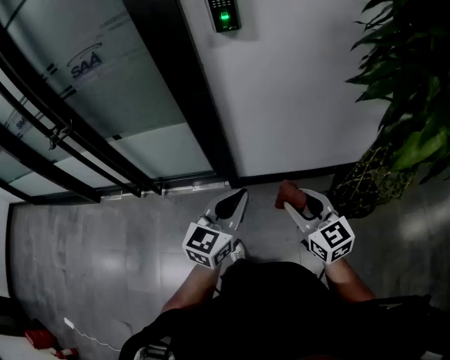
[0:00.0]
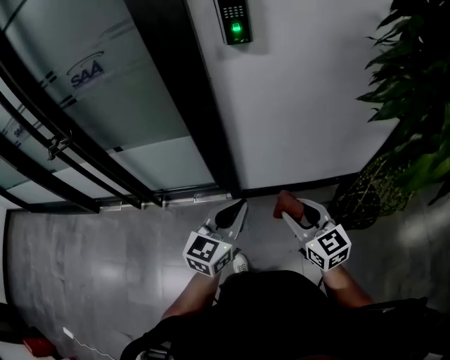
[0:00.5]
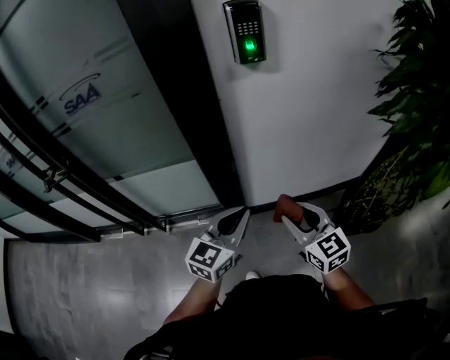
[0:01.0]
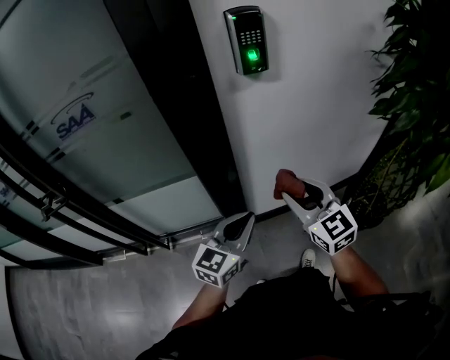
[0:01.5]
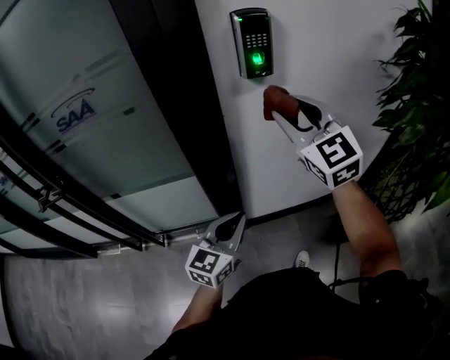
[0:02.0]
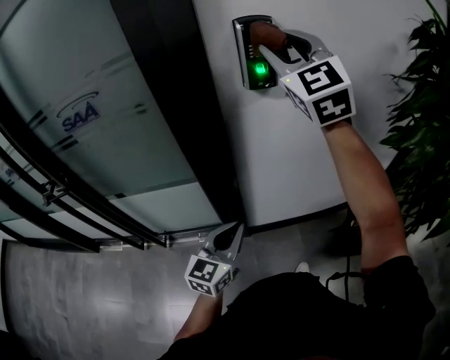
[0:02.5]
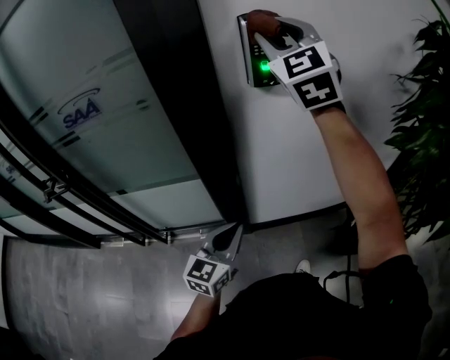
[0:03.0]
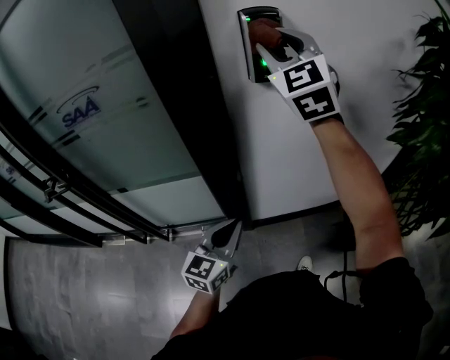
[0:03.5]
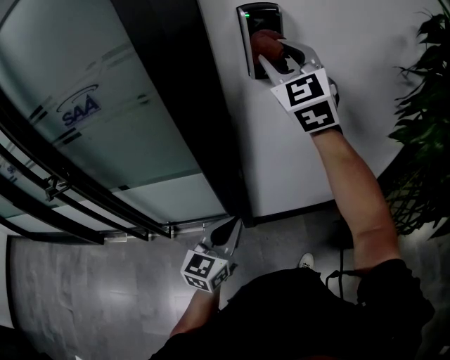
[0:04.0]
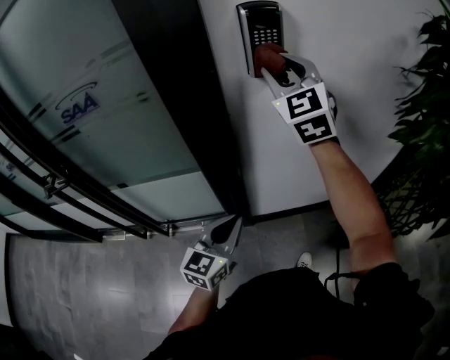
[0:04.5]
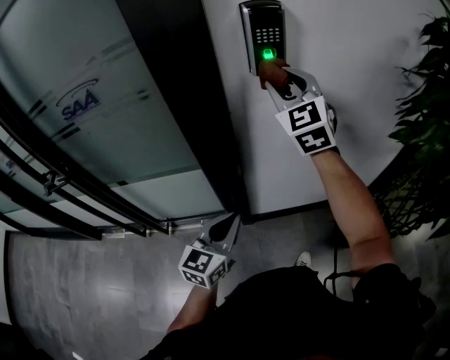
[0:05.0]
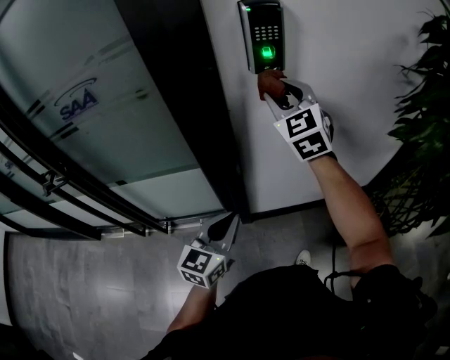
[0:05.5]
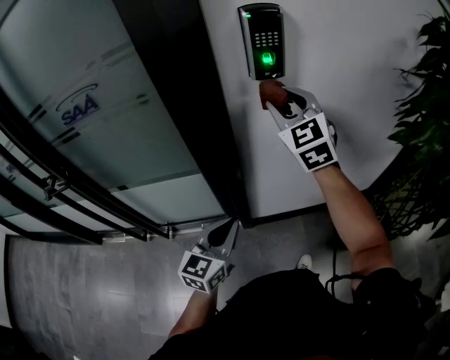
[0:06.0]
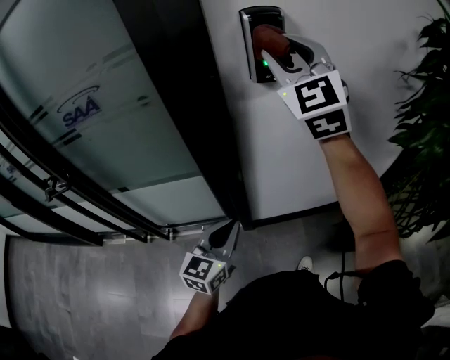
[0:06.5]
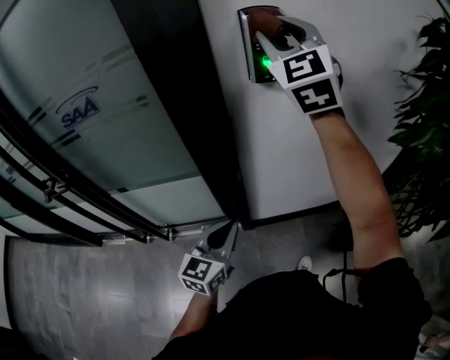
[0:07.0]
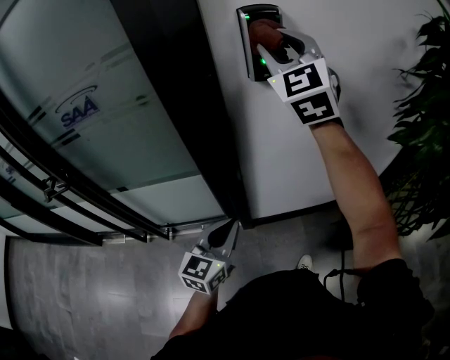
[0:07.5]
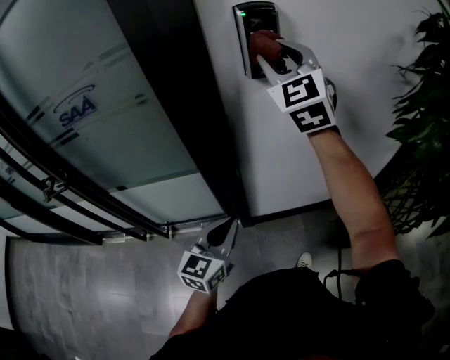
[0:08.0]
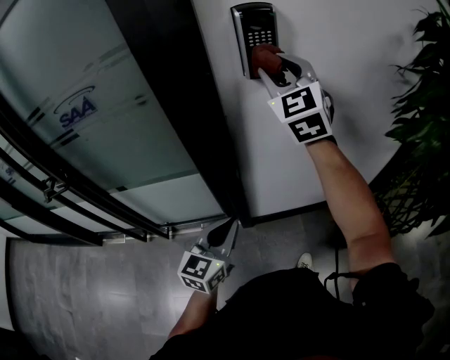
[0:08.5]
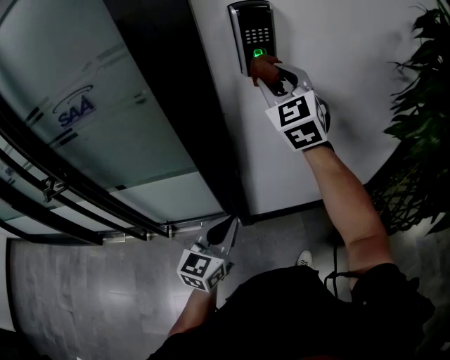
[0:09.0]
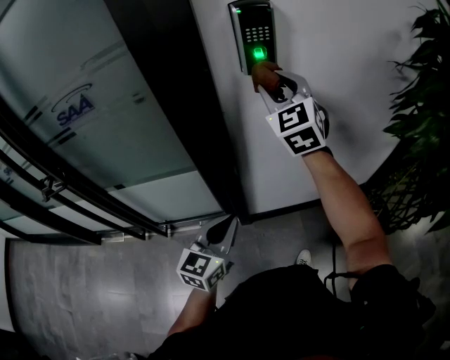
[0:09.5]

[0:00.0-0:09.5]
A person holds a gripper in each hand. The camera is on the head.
0:00.0 to 0:02.0: The right gripper heads forward, upward and to the left, covering roughly 40 cm, and changes its angle by about 30 degrees. The left gripper is displaced to the left and forward by roughly 20 cm.
0:02.0 to 0:04.0: The right gripper shifts some 15 cm forward and upward.
0:04.0 to 0:05.5: The right gripper goes about 10 cm downward.
0:05.5 to 0:07.5: The right gripper moves upward, about 15 cm.
0:07.5 to 0:09.5: The right gripper moves downward, some 10 cm.

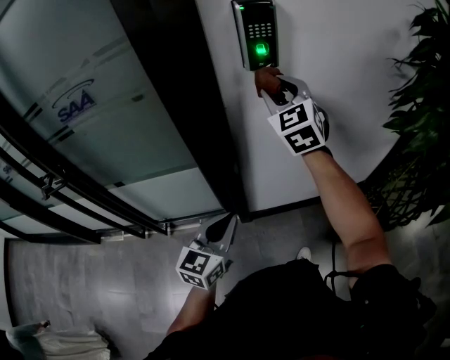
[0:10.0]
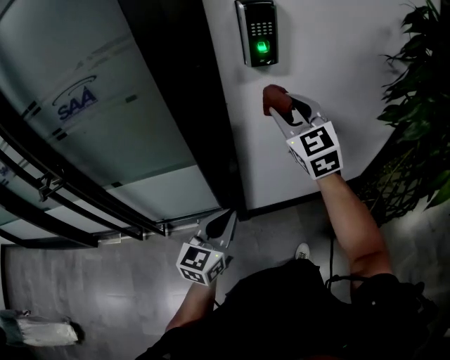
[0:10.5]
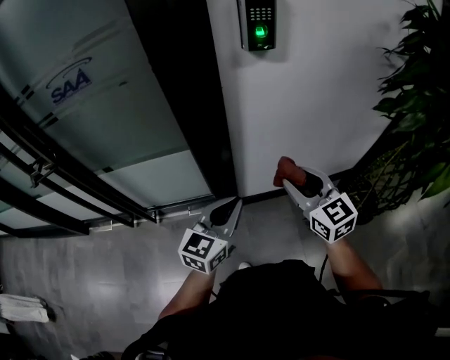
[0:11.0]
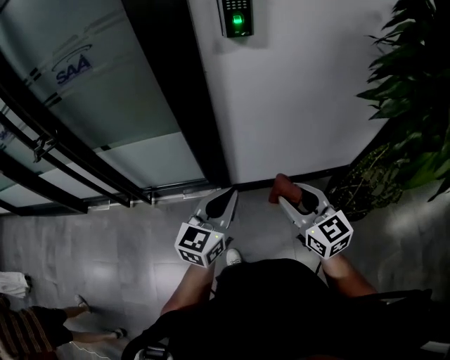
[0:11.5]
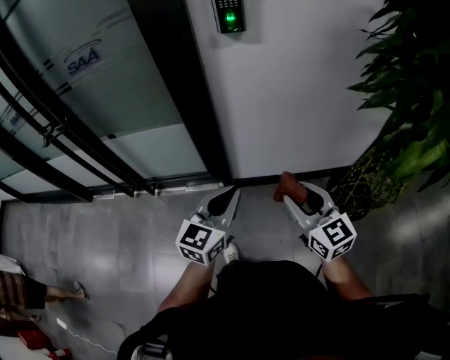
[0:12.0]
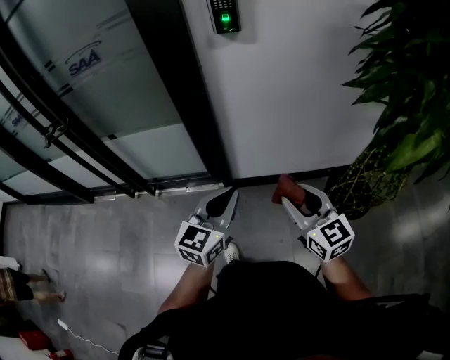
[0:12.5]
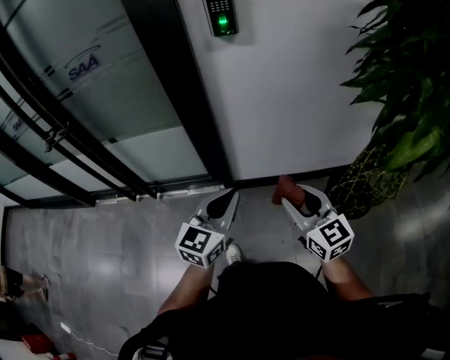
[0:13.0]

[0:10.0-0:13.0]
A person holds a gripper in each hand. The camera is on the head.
0:10.0 to 0:11.5: The left gripper heads to the right and backward, covering some 10 cm. Meanwhile the right gripper goes some 35 cm backward and downward, and swivels approximately 40 degrees.
0:11.5 to 0:13.0: The grippers both shift backward and to the right by approximately 10 cm.

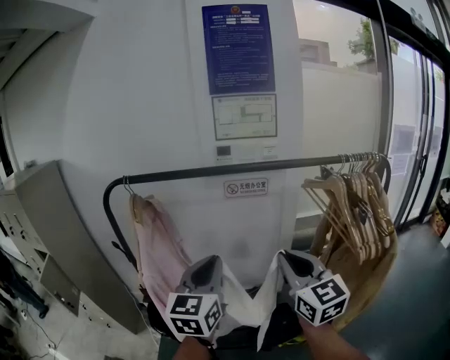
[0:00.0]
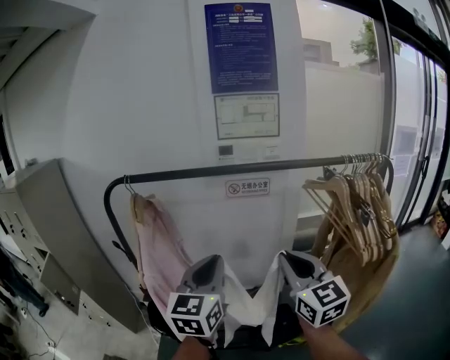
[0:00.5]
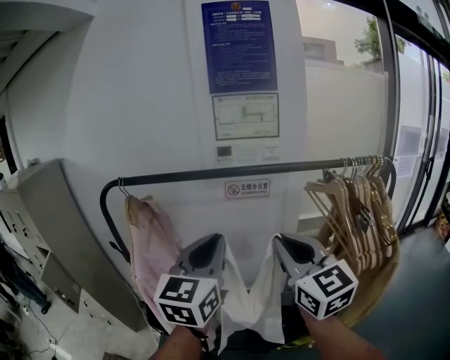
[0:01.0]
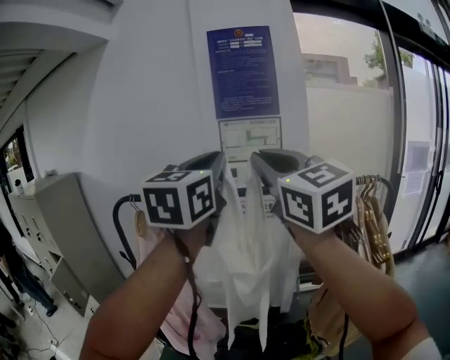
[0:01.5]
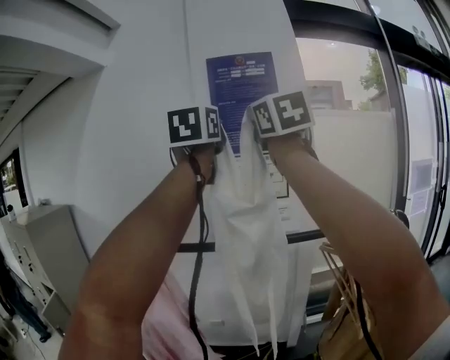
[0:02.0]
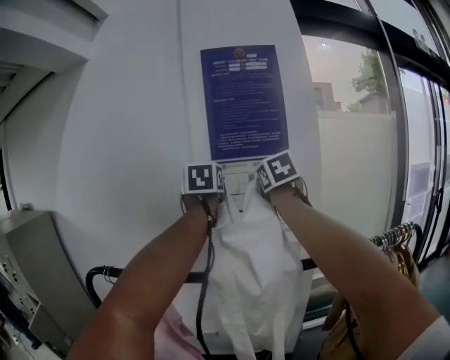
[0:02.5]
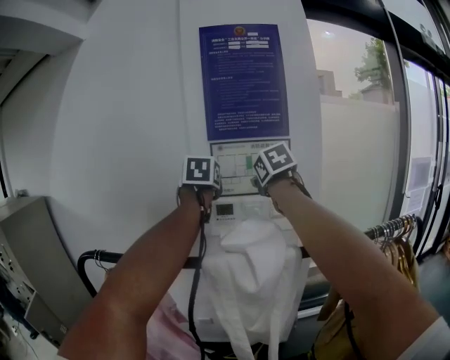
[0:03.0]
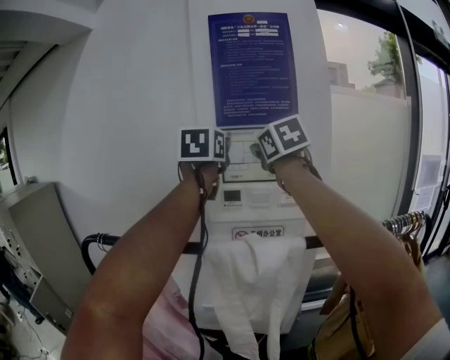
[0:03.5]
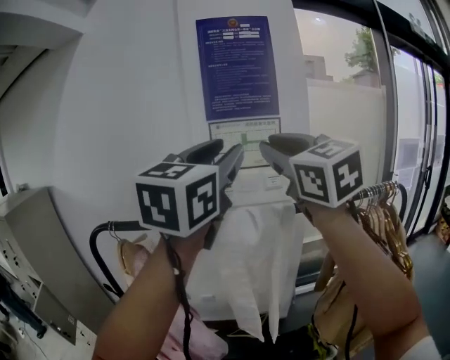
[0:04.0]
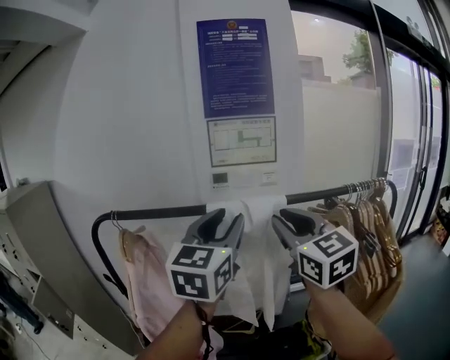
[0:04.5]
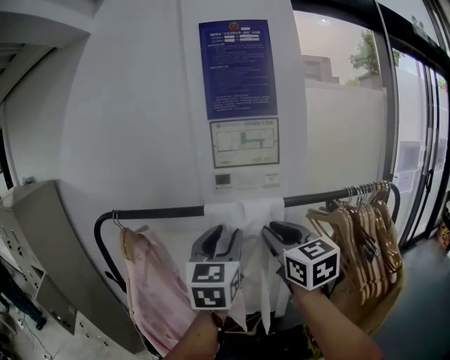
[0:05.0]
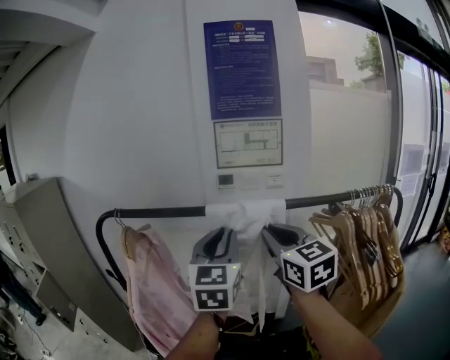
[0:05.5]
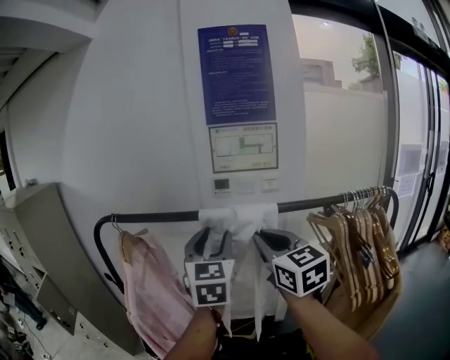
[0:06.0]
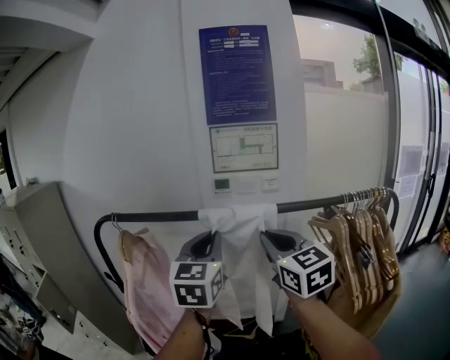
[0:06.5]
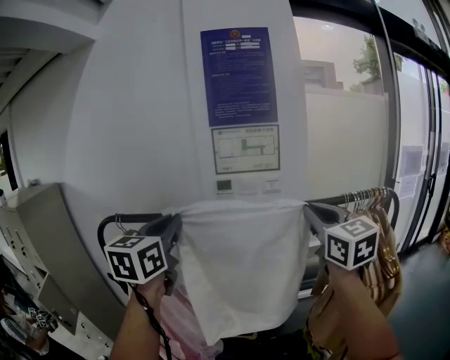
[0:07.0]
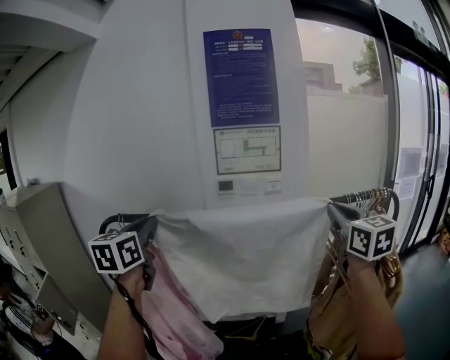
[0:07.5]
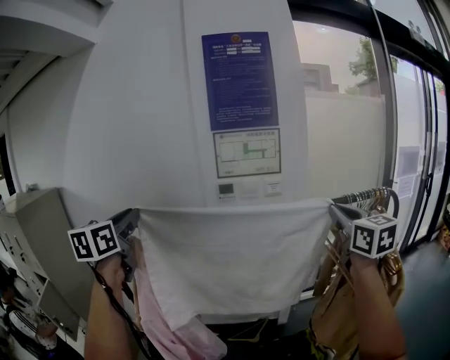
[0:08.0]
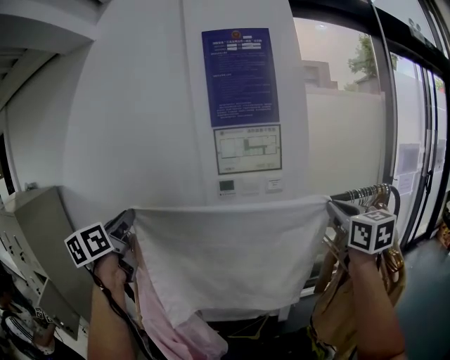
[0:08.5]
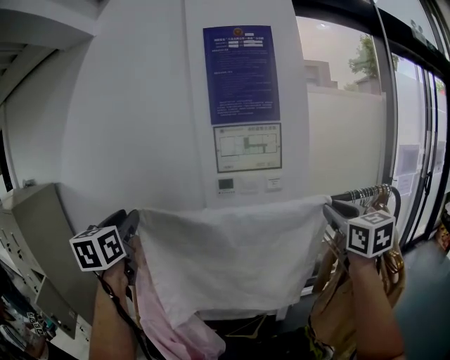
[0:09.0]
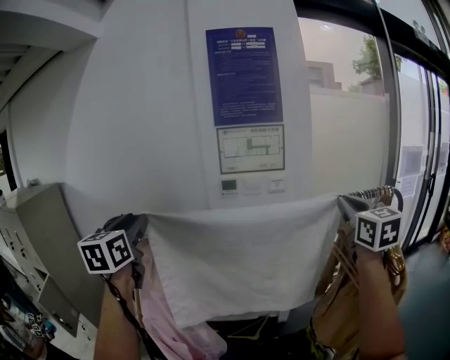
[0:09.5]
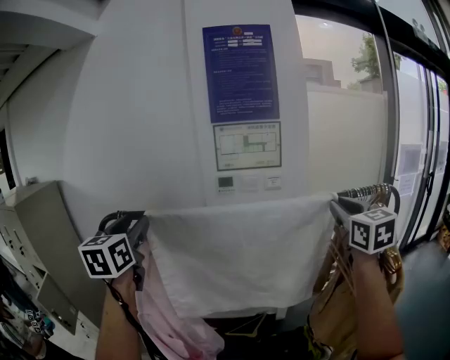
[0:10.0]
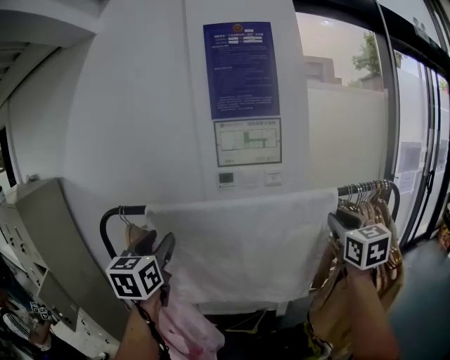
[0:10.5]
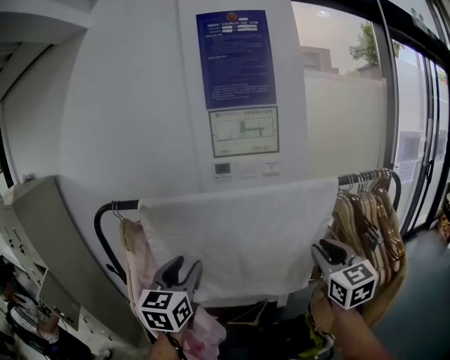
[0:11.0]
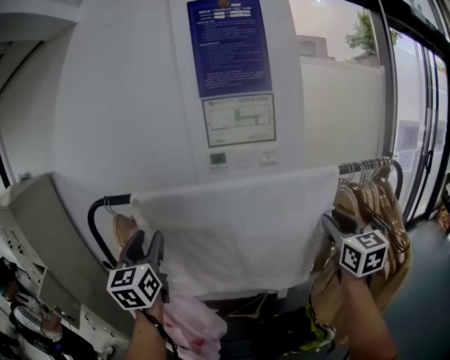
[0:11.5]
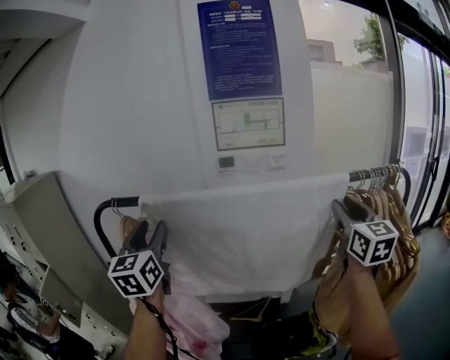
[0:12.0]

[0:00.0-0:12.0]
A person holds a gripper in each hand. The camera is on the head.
0:00.0 to 0:02.0: The two grippers go roughly 50 cm upward and forward. The left gripper rotates about 20 degrees.
0:02.0 to 0:04.0: Both grippers travel together downward, some 15 cm. The right gripper reaches some 25 cm forward, then returns. Meanwhile the left gripper moves approximately 25 cm forward and comes back, changes its angle by approximately 20 degrees, and opens.
0:04.0 to 0:06.0: Both grippers move downward, about 20 cm. The left gripper turns by roughly 30 degrees, and closes, then reopens.
0:06.0 to 0:08.0: The right gripper is displaced to the right by some 20 cm. The left gripper goes some 25 cm to the left, and closes.
0:08.0 to 0:10.0: The left gripper opens.
0:10.0 to 0:12.0: Both grippers travel together downward, some 5 cm.

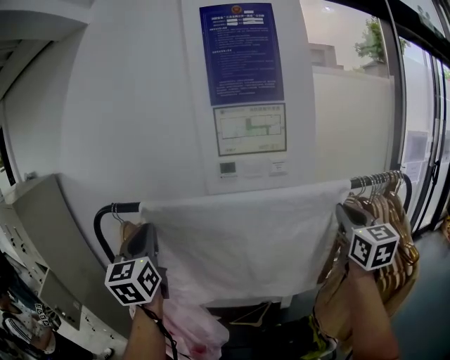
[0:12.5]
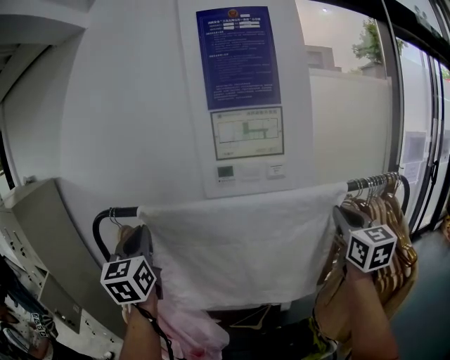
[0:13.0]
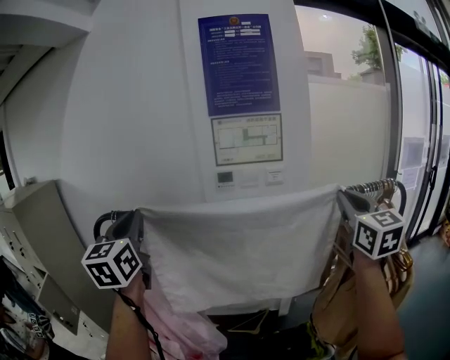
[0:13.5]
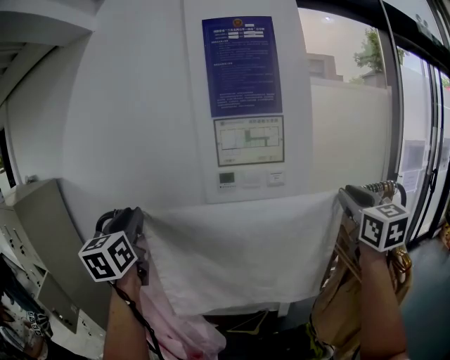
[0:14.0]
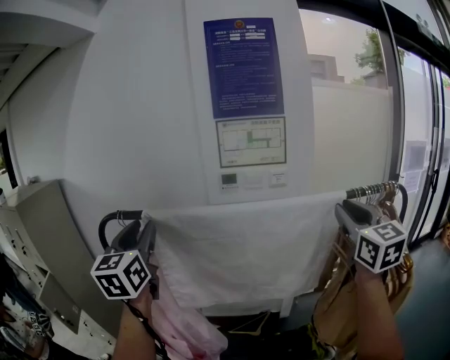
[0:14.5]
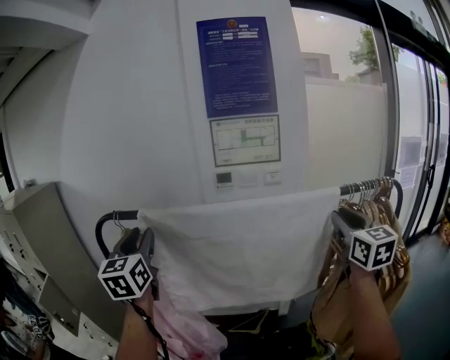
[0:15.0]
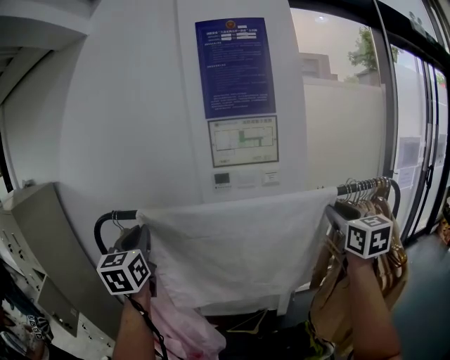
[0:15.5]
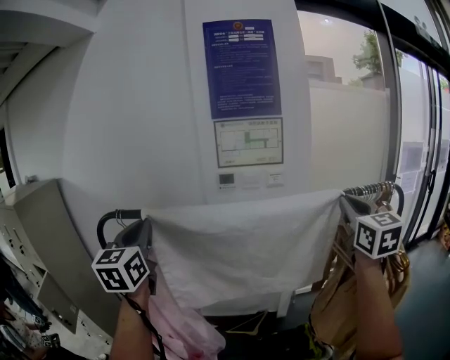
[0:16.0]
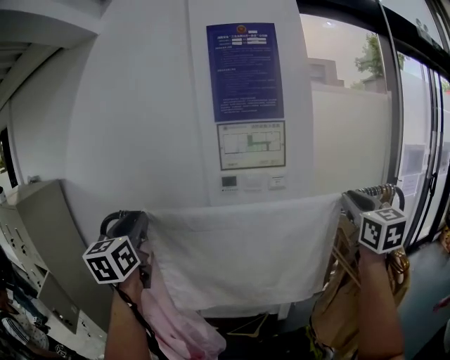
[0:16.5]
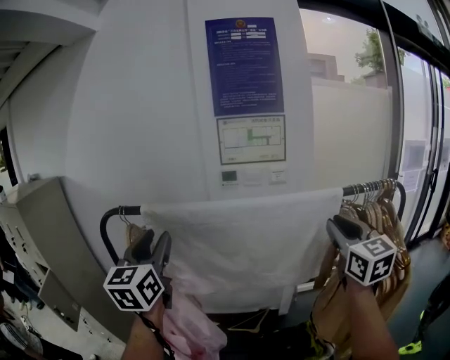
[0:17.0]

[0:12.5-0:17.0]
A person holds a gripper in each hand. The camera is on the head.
0:12.5 to 0:14.5: The right gripper heads upward, covering approximately 5 cm; the left gripper opens.
0:14.5 to 0:17.0: The left gripper closes, then reopens. Meanwhile the right gripper goes up and down, roughly 5 cm each way, reversing 2 times.
